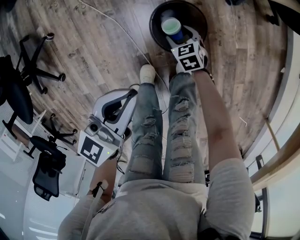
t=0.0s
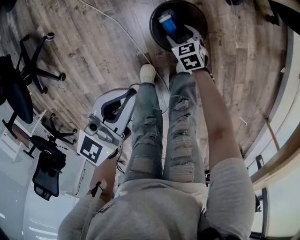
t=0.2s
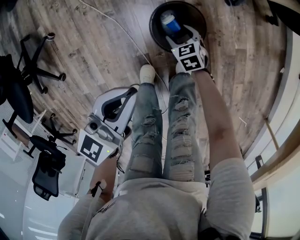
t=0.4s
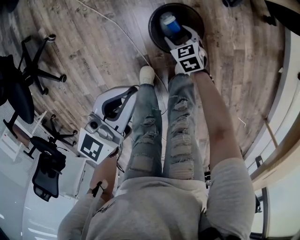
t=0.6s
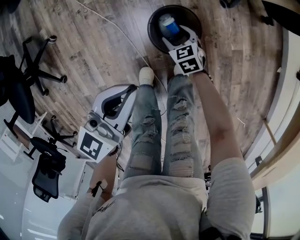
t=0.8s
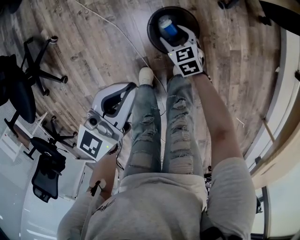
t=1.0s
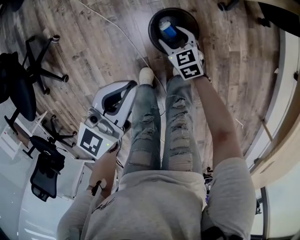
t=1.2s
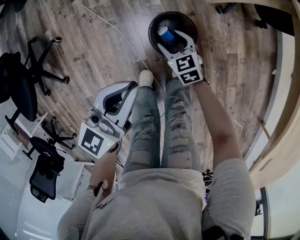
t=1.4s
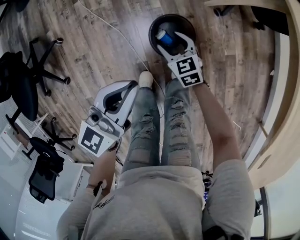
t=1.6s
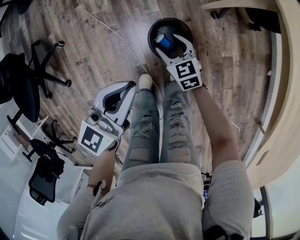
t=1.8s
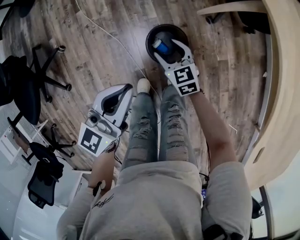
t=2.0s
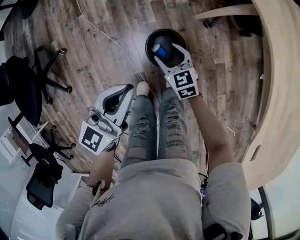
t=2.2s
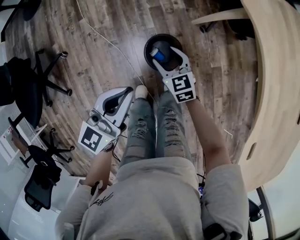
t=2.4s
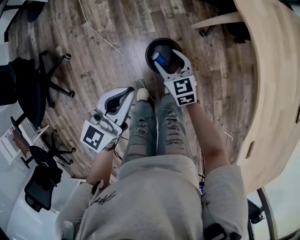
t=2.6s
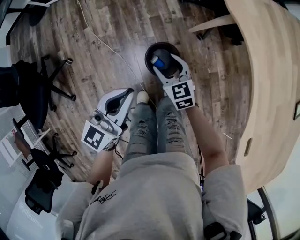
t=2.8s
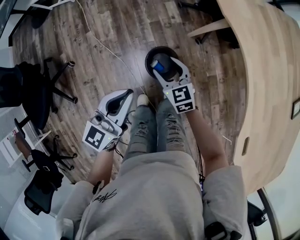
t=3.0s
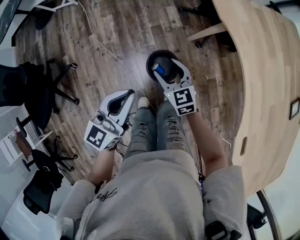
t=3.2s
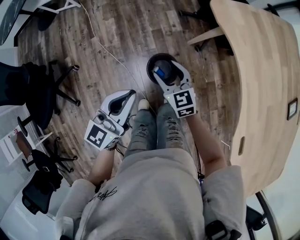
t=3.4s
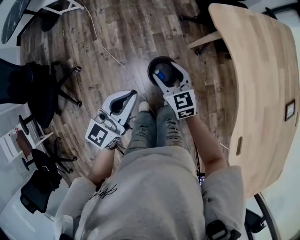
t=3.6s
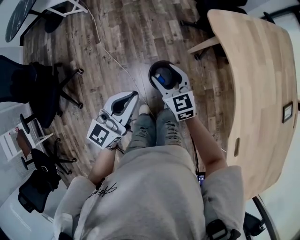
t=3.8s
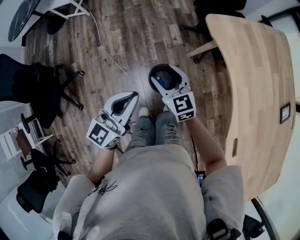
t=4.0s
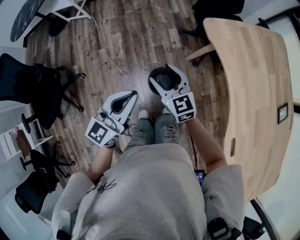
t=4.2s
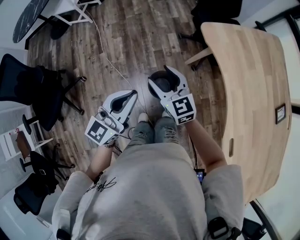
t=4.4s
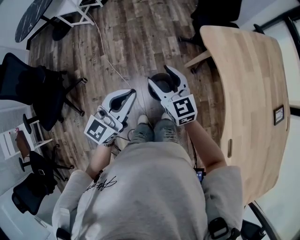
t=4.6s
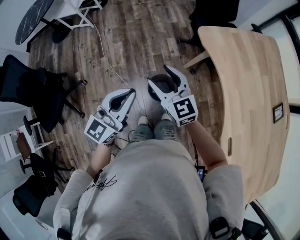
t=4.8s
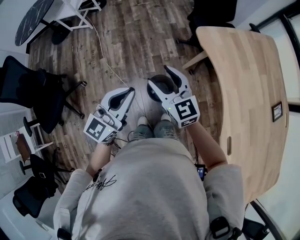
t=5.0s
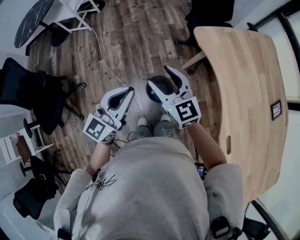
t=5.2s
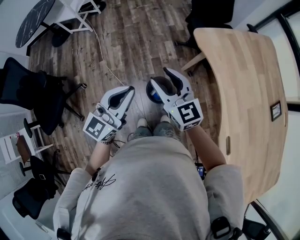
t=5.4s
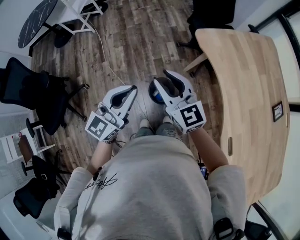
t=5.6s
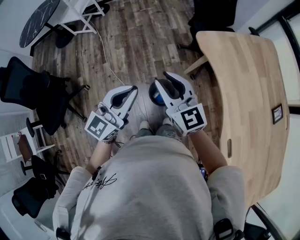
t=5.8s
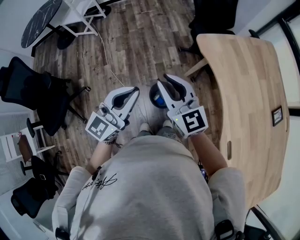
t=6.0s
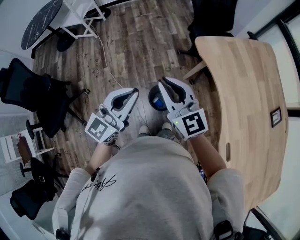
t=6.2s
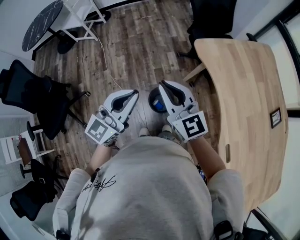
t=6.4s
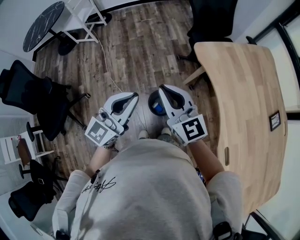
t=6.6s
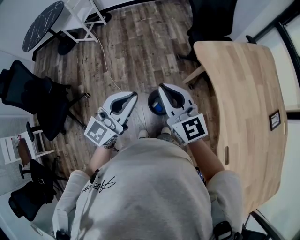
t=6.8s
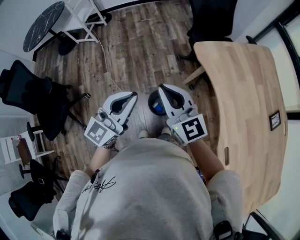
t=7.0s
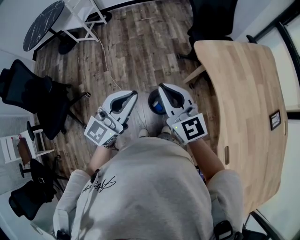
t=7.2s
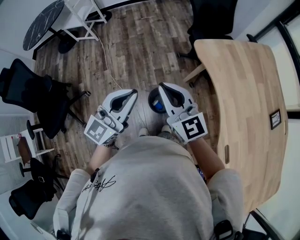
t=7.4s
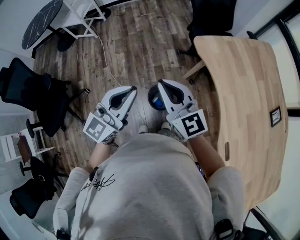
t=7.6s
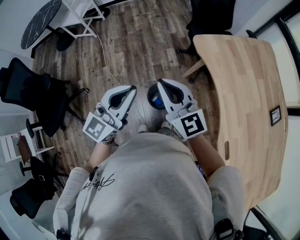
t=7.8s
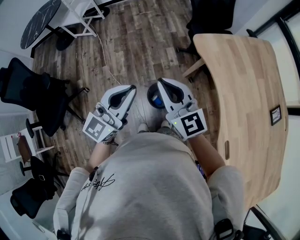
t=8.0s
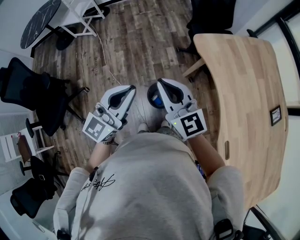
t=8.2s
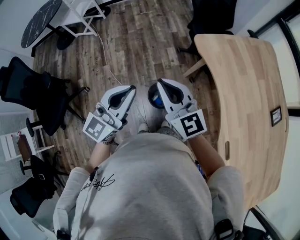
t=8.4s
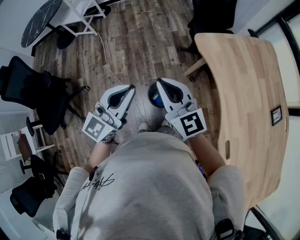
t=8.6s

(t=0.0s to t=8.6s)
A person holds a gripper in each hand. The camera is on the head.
t=0.0s - t=1.4s: The left gripper goes approximately 5 cm upward, while the right gripper moves upward, approximately 15 cm.
t=1.4s - t=2.8s: The right gripper travels upward by roughly 20 cm. Meanwhile the left gripper goes roughly 10 cm upward.
t=2.8s - t=4.4s: The left gripper goes some 15 cm upward; the right gripper shifts some 25 cm upward.
t=4.4s - t=5.8s: The right gripper heads upward, covering roughly 10 cm, and closes its fingers, while the left gripper goes roughly 5 cm upward.
t=5.8s - t=7.2s: The right gripper closes.
t=7.2s - t=8.6s: Both grippers stay about where they are.

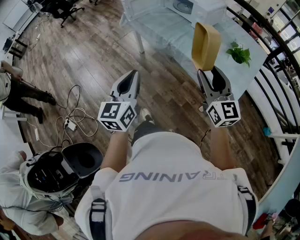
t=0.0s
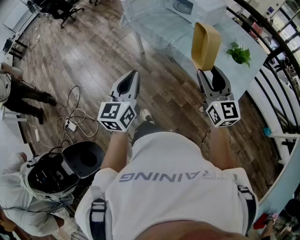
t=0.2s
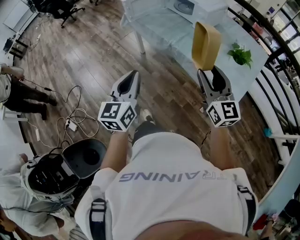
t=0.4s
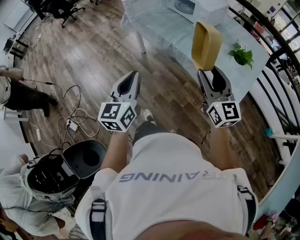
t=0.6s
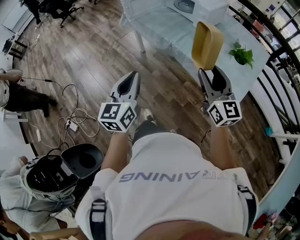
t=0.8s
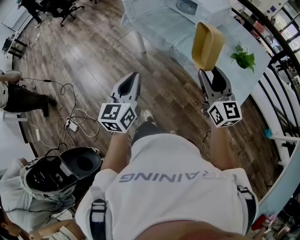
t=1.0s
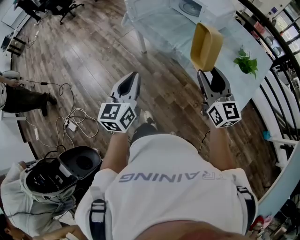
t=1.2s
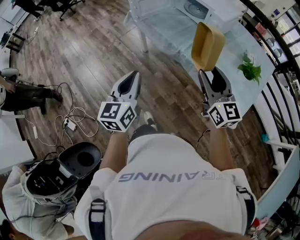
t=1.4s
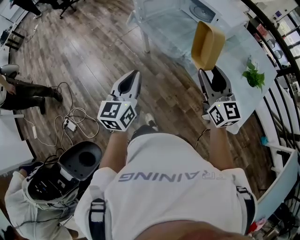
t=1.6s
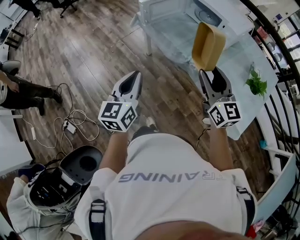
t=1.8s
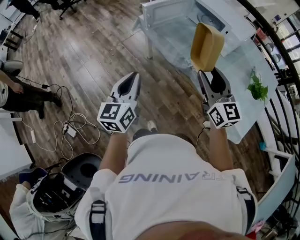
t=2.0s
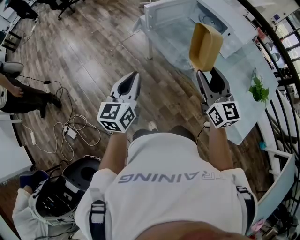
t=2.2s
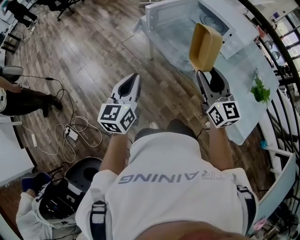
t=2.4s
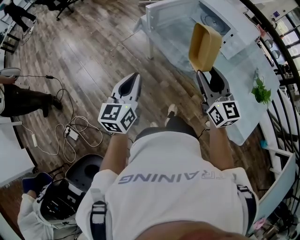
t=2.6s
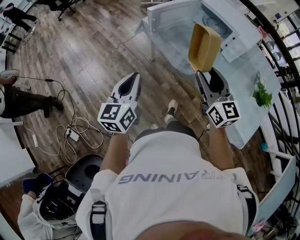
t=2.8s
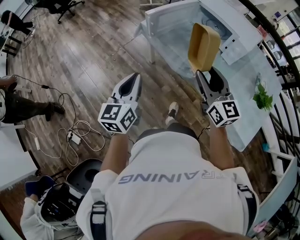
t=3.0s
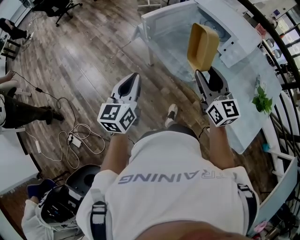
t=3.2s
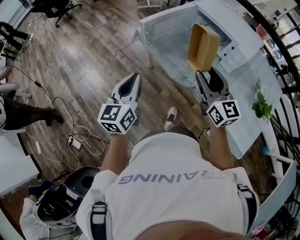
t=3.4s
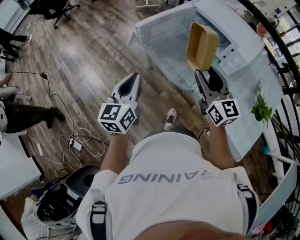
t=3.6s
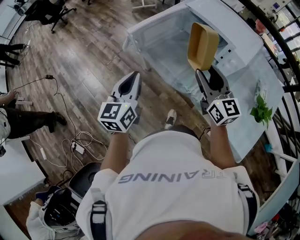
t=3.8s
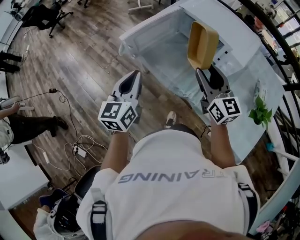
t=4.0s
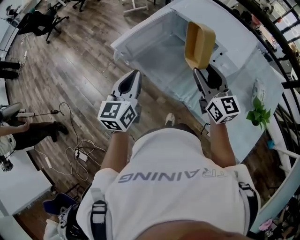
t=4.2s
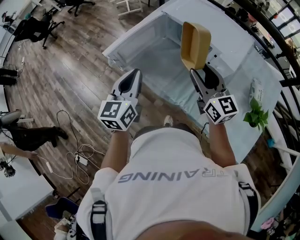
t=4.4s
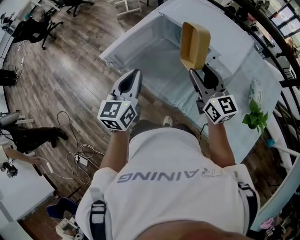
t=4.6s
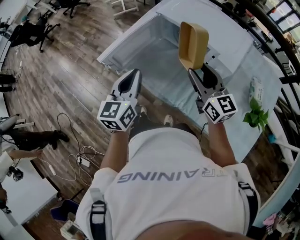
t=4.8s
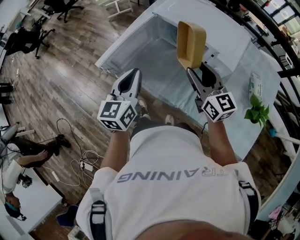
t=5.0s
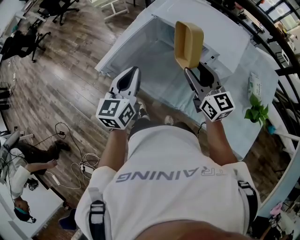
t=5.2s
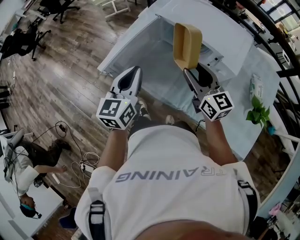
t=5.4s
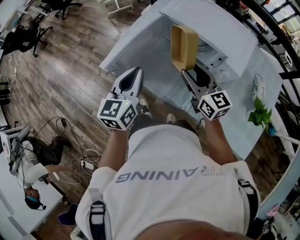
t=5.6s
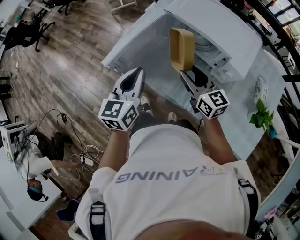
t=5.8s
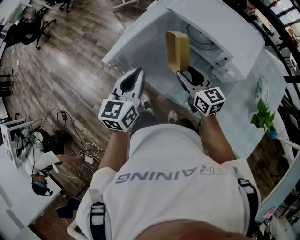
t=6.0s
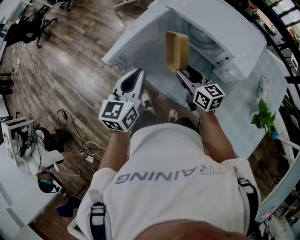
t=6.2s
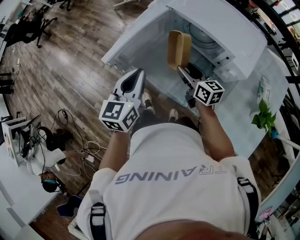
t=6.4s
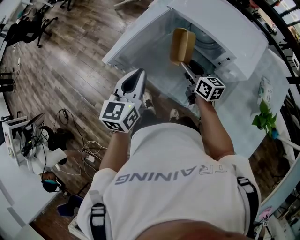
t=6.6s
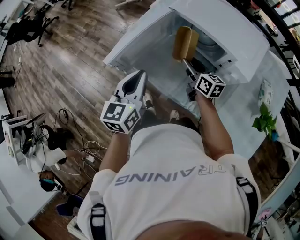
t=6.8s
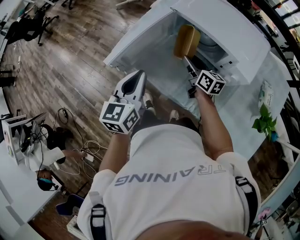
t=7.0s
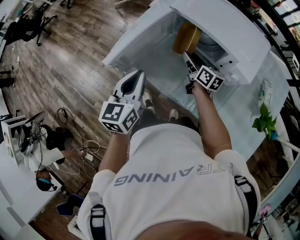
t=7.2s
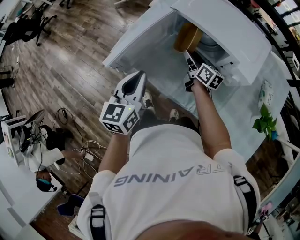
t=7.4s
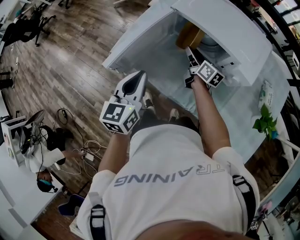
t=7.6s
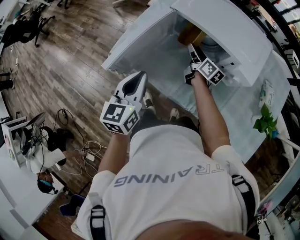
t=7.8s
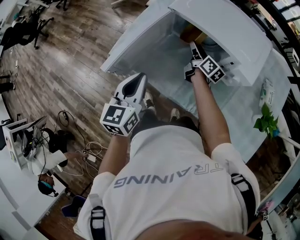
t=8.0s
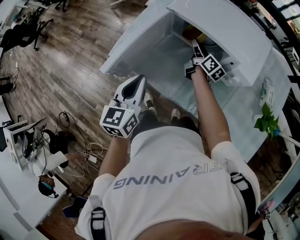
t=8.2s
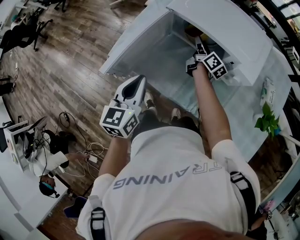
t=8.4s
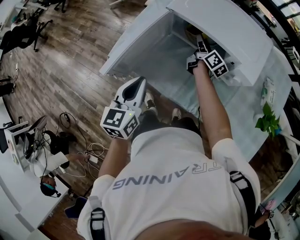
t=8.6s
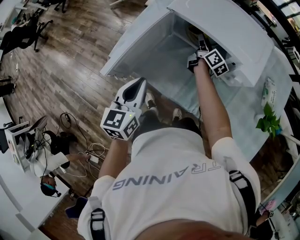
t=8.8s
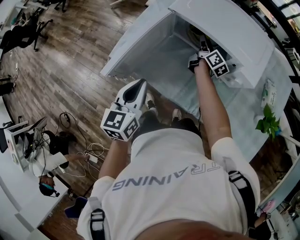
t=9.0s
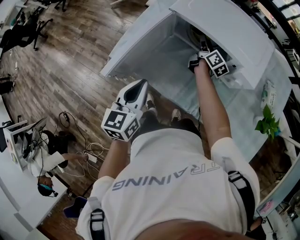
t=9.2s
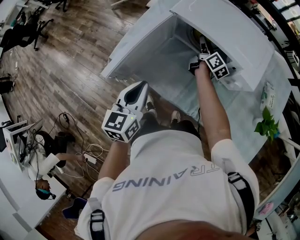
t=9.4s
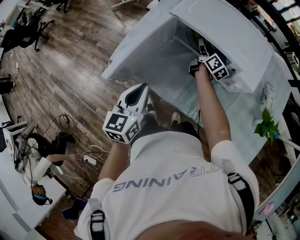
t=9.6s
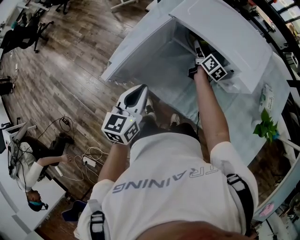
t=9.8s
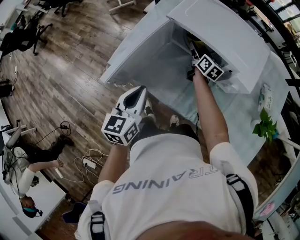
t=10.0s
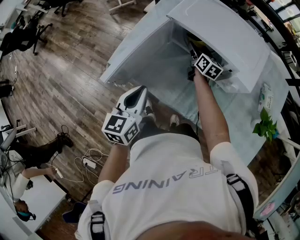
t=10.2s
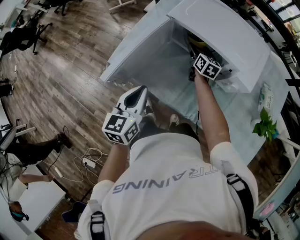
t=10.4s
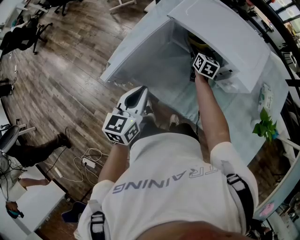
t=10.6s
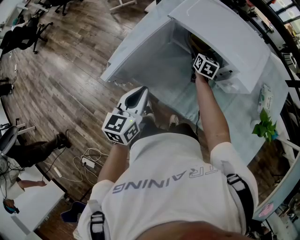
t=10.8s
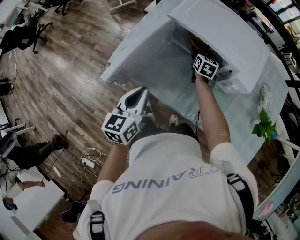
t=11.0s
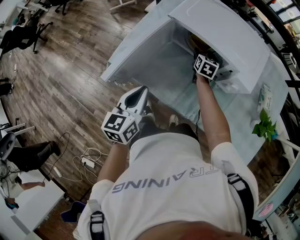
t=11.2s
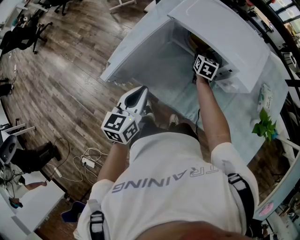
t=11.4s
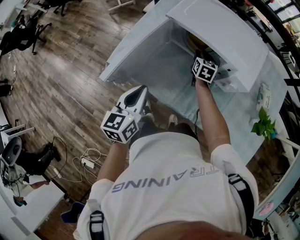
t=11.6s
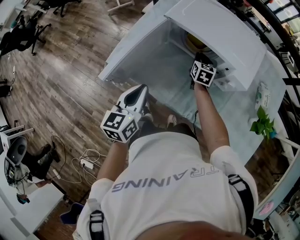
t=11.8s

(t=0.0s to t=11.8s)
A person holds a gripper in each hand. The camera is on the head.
t=0.0s - t=1.4s: Both grippers travel together forward and to the left, roughly 15 cm.
t=1.4s - t=3.0s: The grippers both shift forward and to the left by roughly 25 cm.
t=3.0s - t=4.4s: Both grippers move forward and to the right, roughly 30 cm.
t=4.4s - t=6.0s: The right gripper moves downward, to the left and forward, roughly 15 cm, while the left gripper shifts some 5 cm forward.
t=6.0s - t=7.4s: The right gripper heads forward and downward, covering some 15 cm, and turns by approximately 30 degrees.
t=7.4s - t=8.8s: The right gripper shifts roughly 10 cm forward and to the right, and swivels roughly 30 degrees.
t=8.8s - t=10.4s: The right gripper swivels about 30 degrees, and opens up.
t=10.4s - t=11.8s: The right gripper changes place by about 5 cm, and closes up.

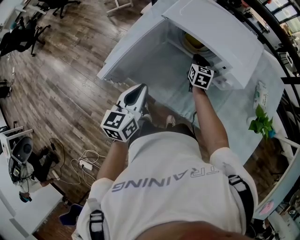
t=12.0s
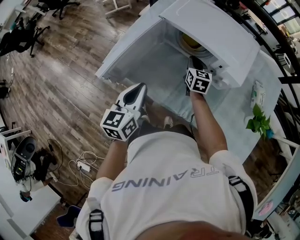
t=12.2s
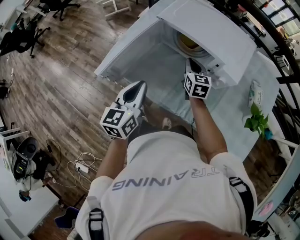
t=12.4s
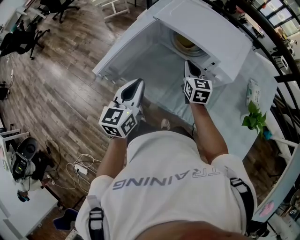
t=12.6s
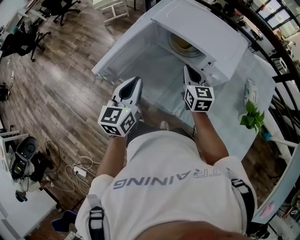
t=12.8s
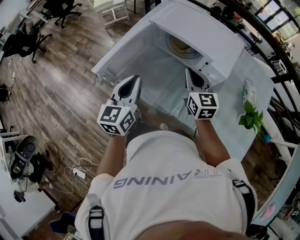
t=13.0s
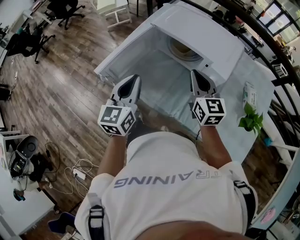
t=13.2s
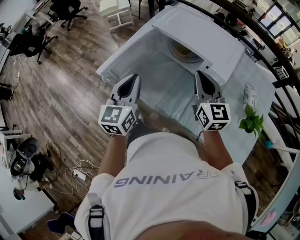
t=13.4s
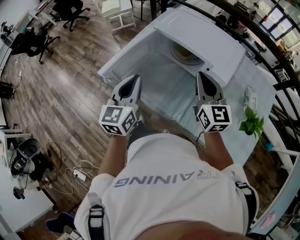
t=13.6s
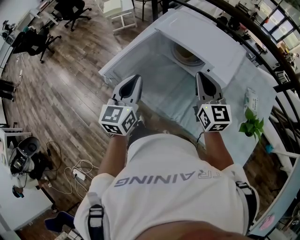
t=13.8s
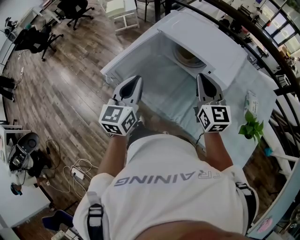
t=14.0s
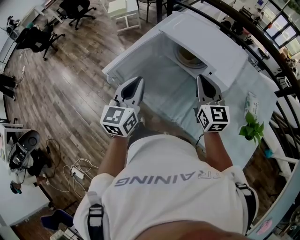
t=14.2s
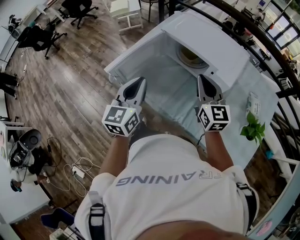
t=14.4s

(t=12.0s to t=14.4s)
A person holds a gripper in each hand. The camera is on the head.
t=12.0s - t=13.2s: The left gripper goes approximately 10 cm upward. The right gripper heads upward and backward, covering some 25 cm, and turns by roughly 30 degrees.
t=13.2s - t=14.4s: There are only small adjustments of the grippers.

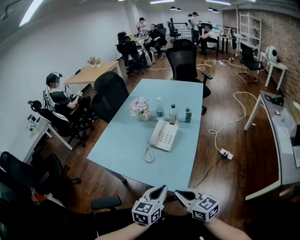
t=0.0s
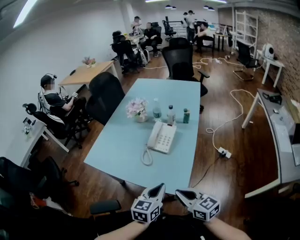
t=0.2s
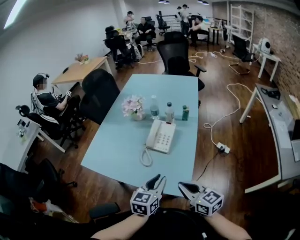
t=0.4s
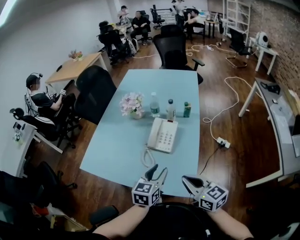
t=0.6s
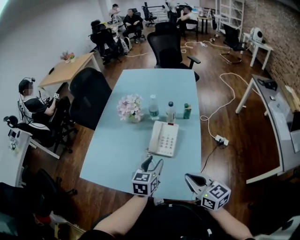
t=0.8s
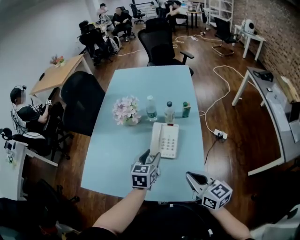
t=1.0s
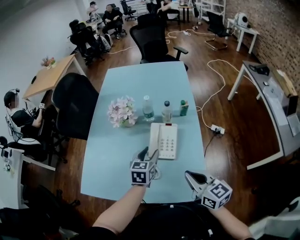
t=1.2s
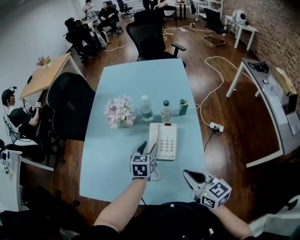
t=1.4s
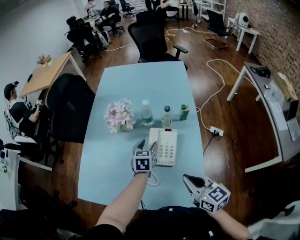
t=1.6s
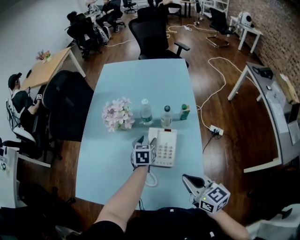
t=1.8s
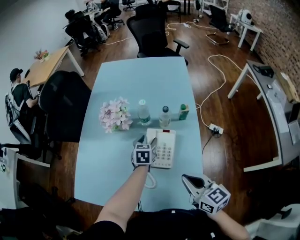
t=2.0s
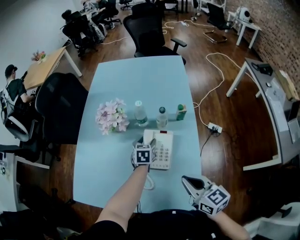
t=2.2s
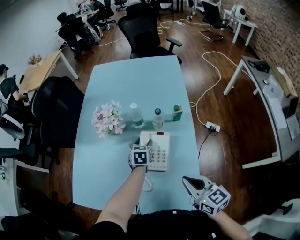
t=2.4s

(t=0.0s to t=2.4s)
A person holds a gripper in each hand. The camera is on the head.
t=0.0s - t=1.2s: The left gripper goes approximately 35 cm forward, and opens; the right gripper heads forward, covering about 20 cm, and rotates approximately 20 degrees.
t=1.2s - t=2.4s: The left gripper is displaced forward and downward by some 20 cm. The right gripper is displaced forward by some 5 cm.
